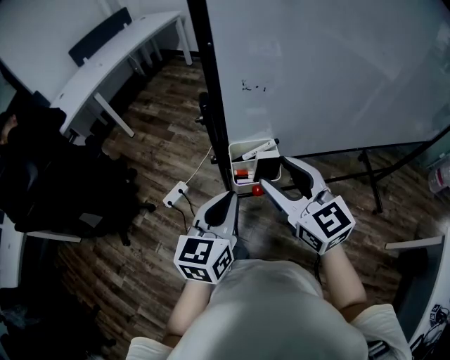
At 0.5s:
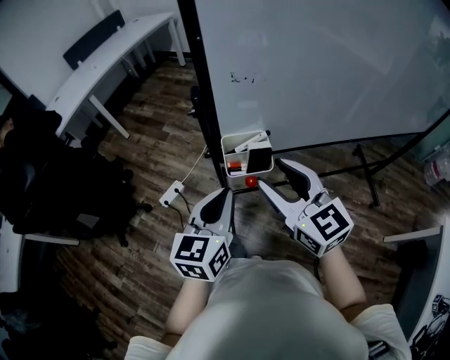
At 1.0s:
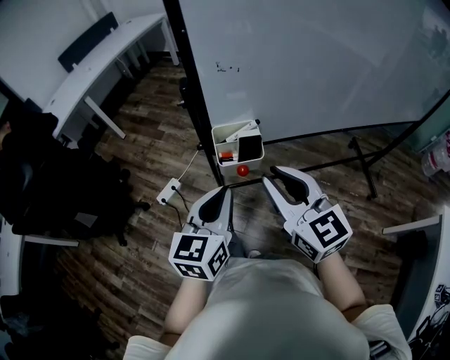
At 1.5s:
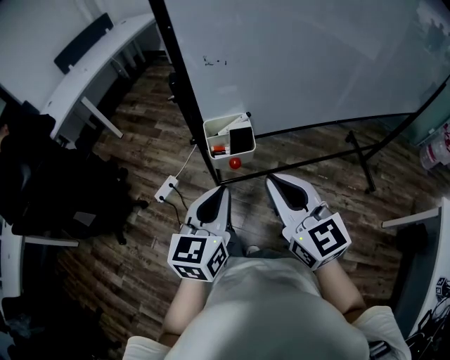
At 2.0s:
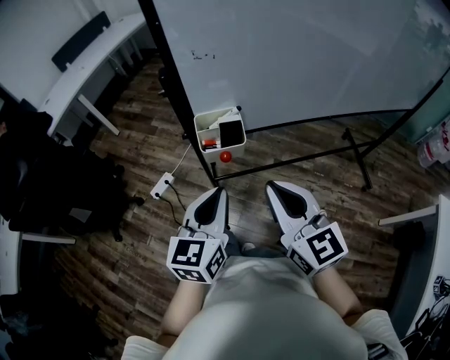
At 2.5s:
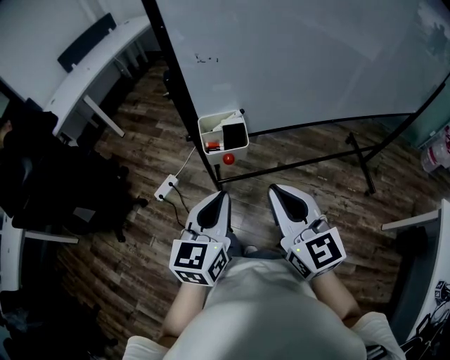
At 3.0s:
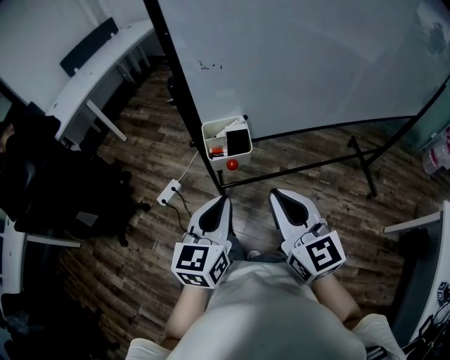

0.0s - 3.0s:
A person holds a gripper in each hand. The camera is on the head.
0.0s - 1.5s: The right gripper shifts about 10 cm backward, and closes its fingers, while the left gripper is displaced backward by approximately 5 cm.
1.5s - 3.0s: The grippers stay close to where they were, moving slightly.

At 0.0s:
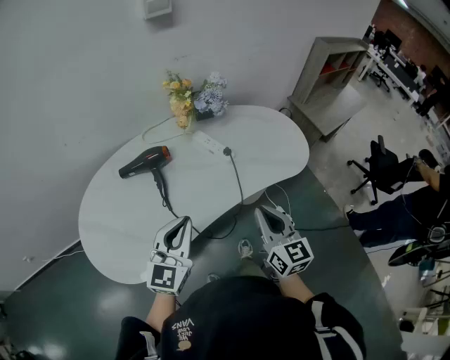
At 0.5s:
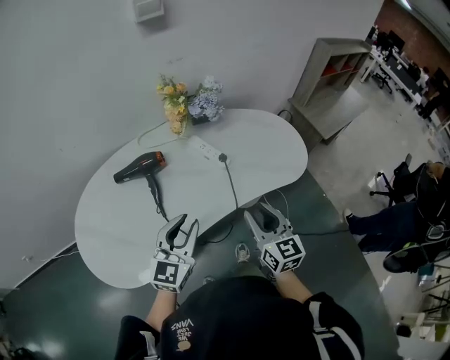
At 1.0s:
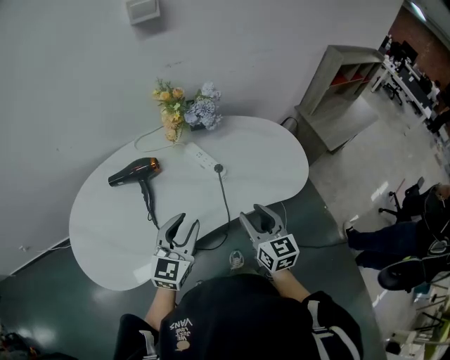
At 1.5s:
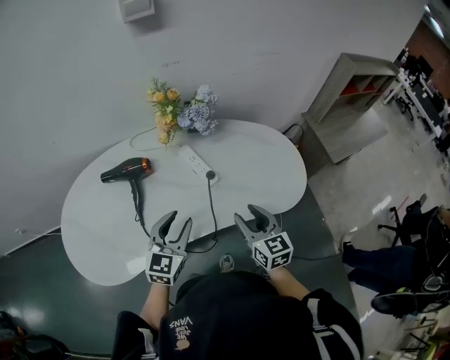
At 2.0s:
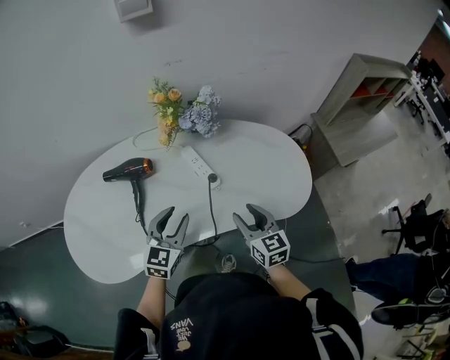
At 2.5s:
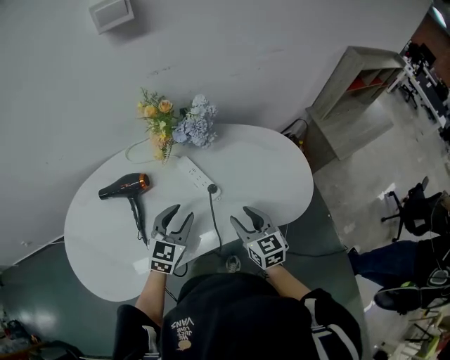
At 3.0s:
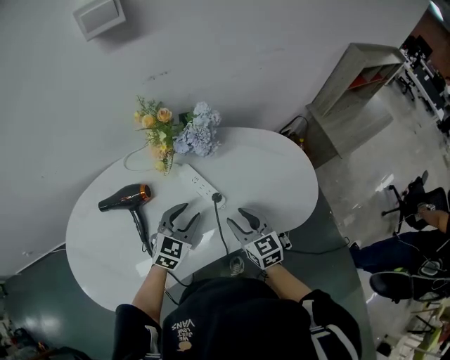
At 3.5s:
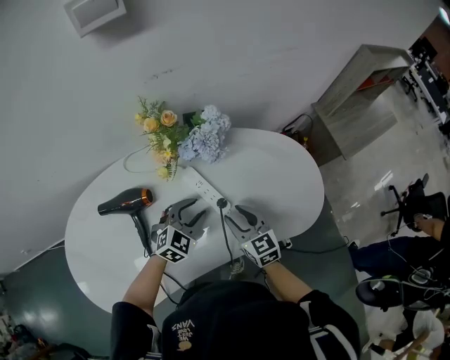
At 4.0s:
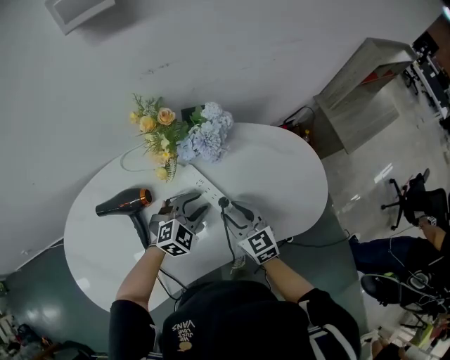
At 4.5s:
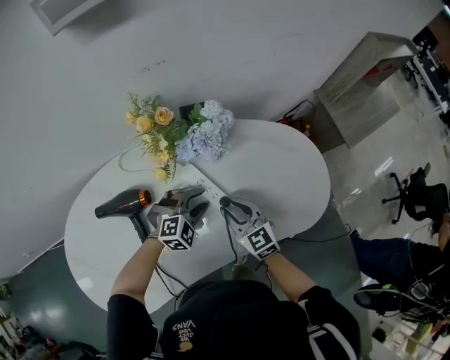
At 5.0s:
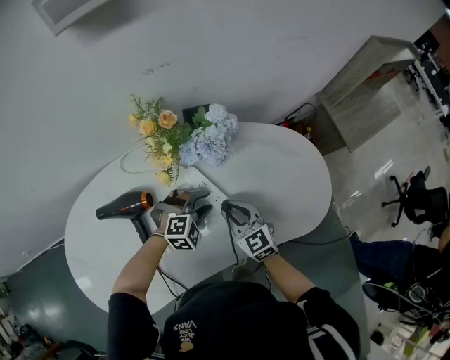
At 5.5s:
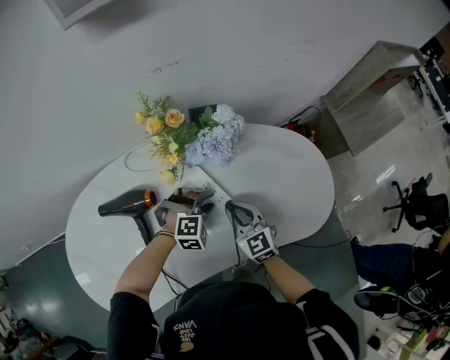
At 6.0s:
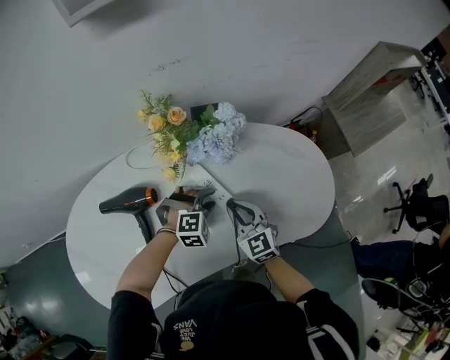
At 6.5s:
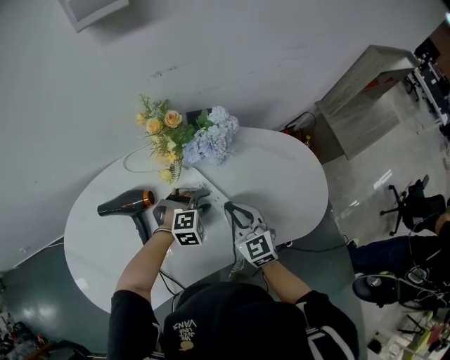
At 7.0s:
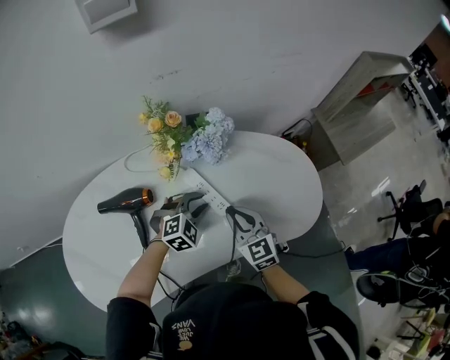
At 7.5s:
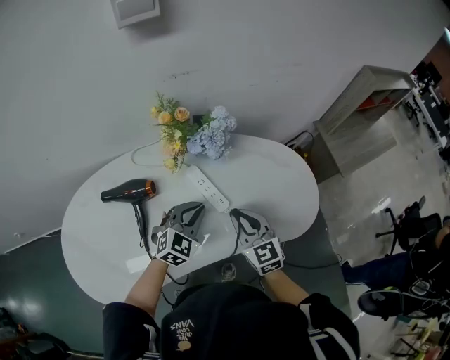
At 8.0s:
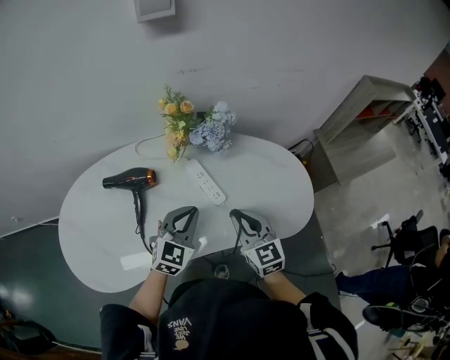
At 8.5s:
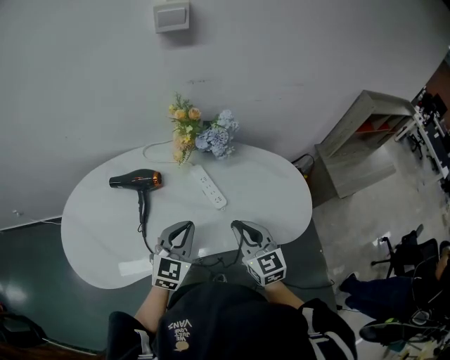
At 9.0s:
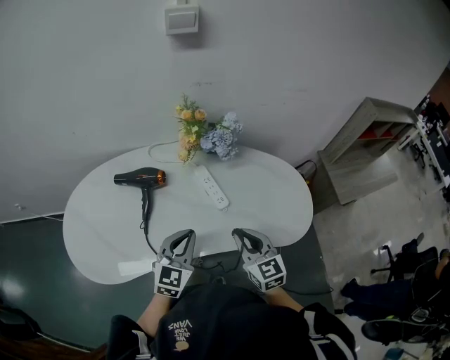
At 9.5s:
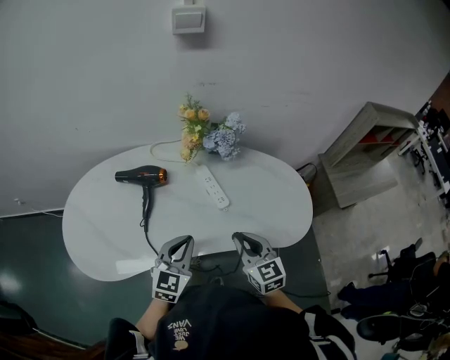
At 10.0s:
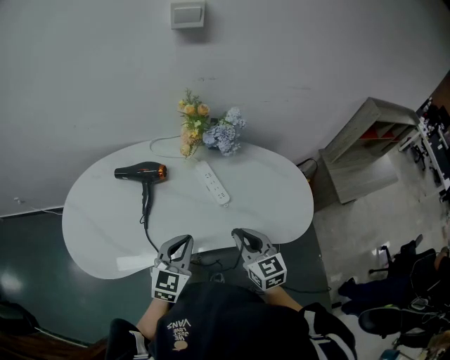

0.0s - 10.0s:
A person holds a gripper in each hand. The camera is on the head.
0.0s - 2.0s: The grippers both shift forward, downward and to the right by roughly 20 cm. The left gripper turns by some 20 degrees, and opens its fingers. Meanwhile the right gripper turns by some 20 degrees, and opens.
2.0s - 4.0s: The left gripper shifts roughly 20 cm forward and downward, and rotates about 50 degrees, while the right gripper moves forward, to the left and downward, some 15 cm.
4.0s - 6.0s: The left gripper swivels some 30 degrees, while the right gripper closes its fingers.
6.0s - 8.0s: The left gripper travels upward and backward by approximately 20 cm, tips its fingers upward by about 40 degrees, and closes its fingers, while the right gripper shifts some 15 cm upward, backward and to the right.
8.0s - 10.0s: The right gripper heads backward, covering roughly 10 cm. Meanwhile the left gripper moves backward, about 10 cm.

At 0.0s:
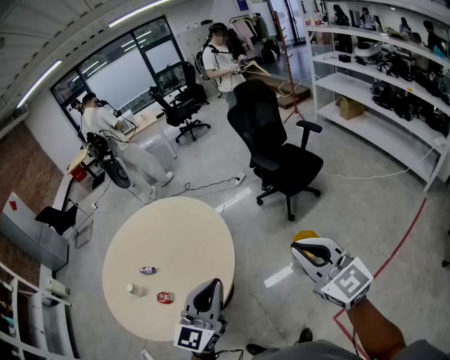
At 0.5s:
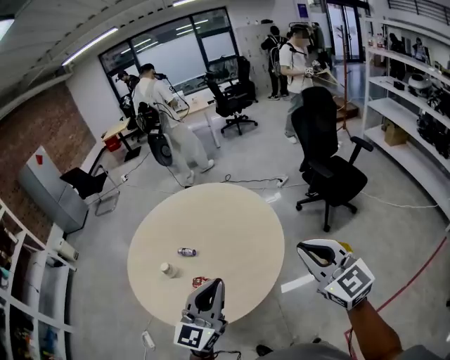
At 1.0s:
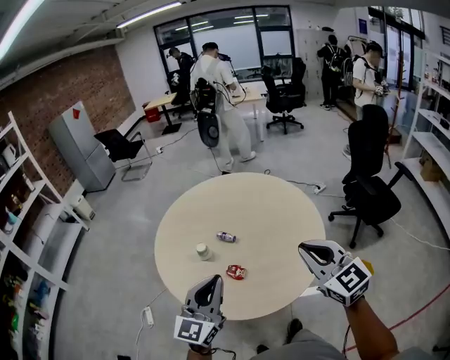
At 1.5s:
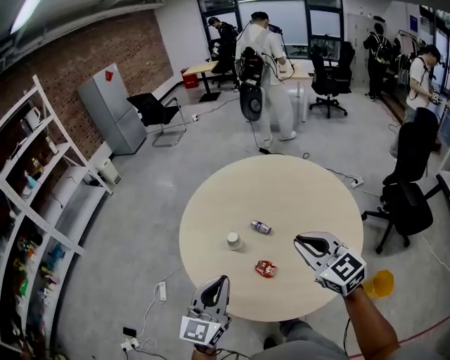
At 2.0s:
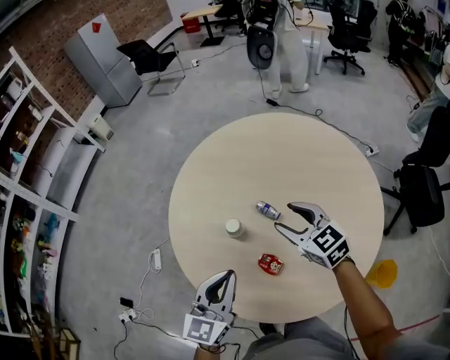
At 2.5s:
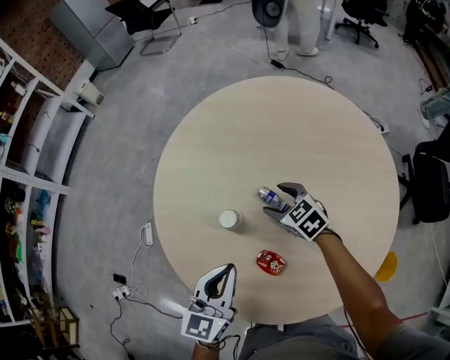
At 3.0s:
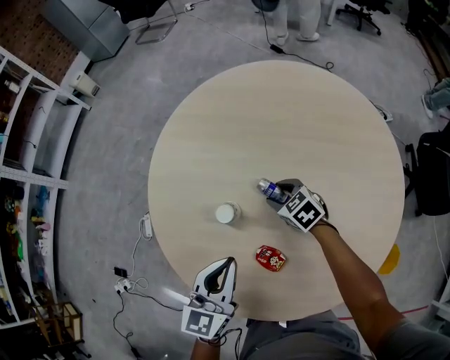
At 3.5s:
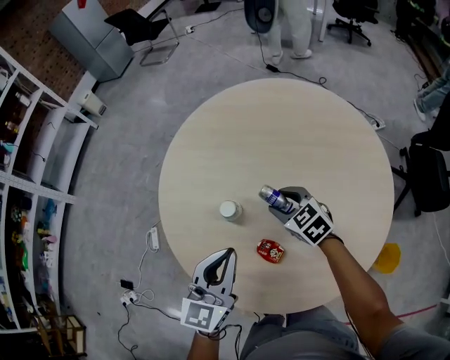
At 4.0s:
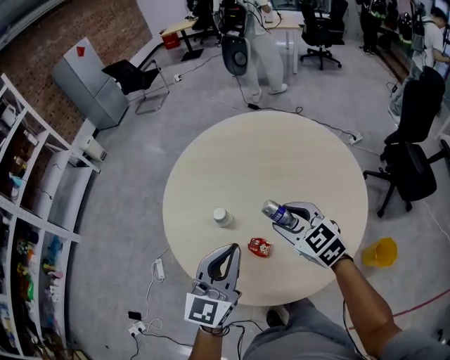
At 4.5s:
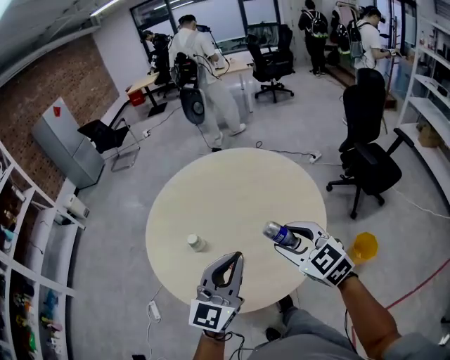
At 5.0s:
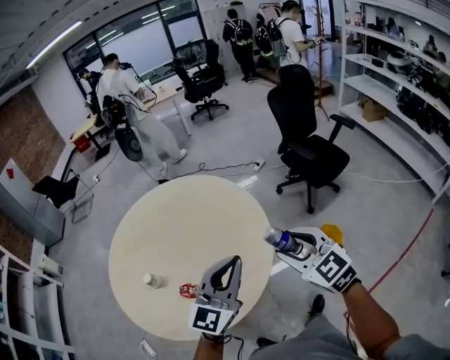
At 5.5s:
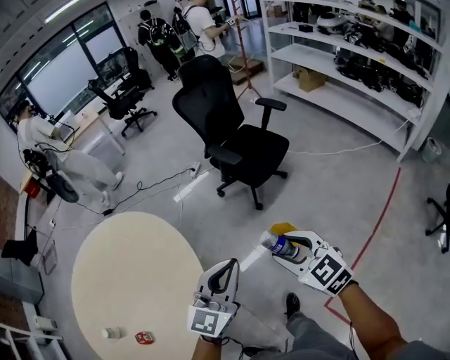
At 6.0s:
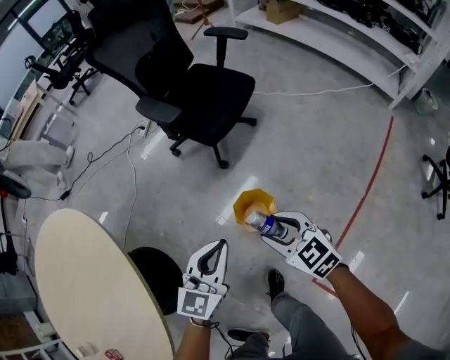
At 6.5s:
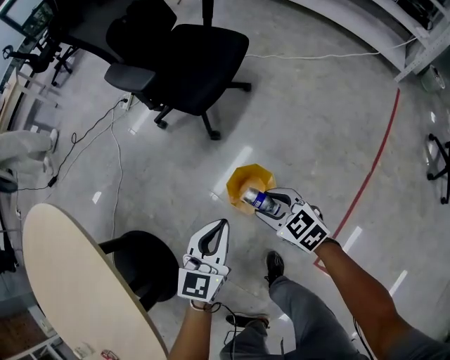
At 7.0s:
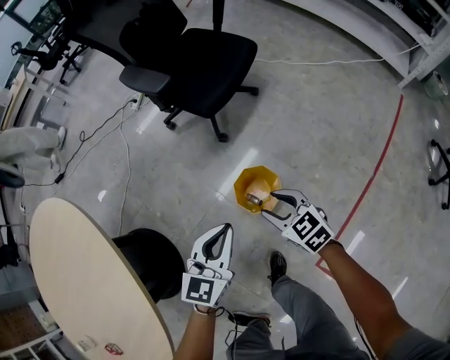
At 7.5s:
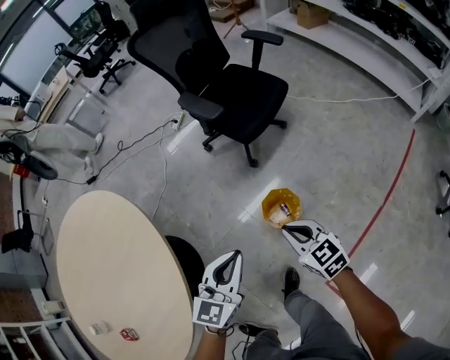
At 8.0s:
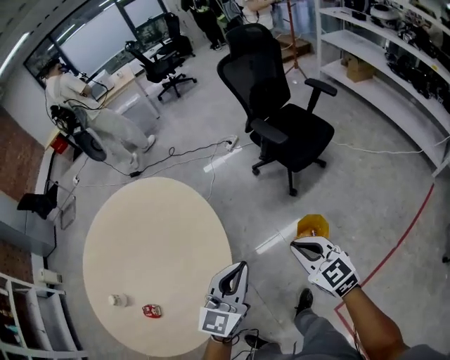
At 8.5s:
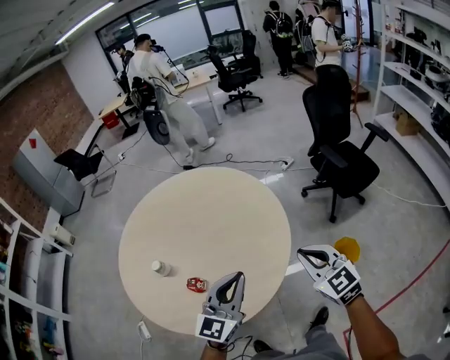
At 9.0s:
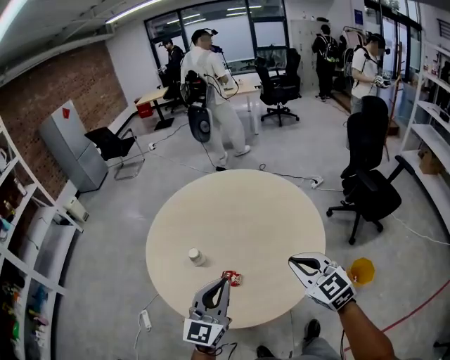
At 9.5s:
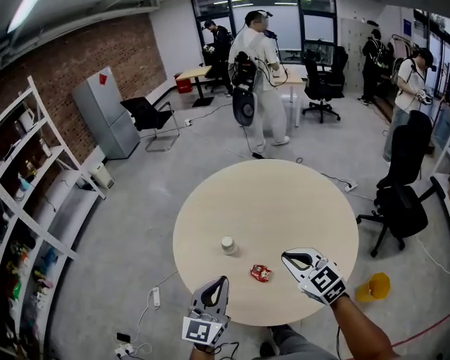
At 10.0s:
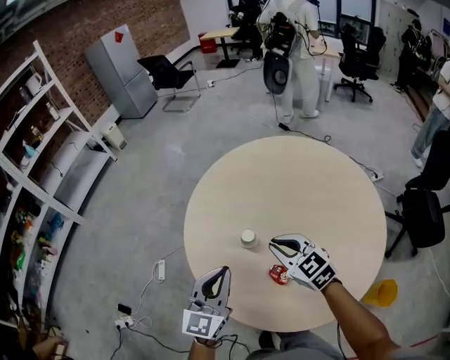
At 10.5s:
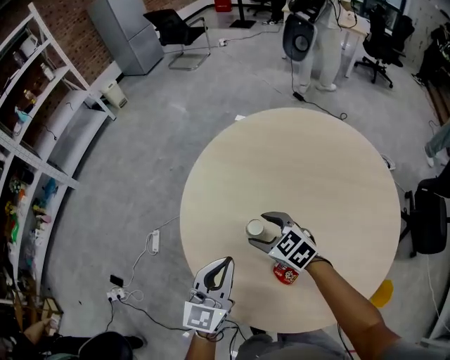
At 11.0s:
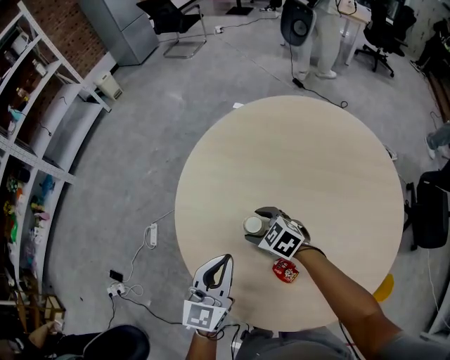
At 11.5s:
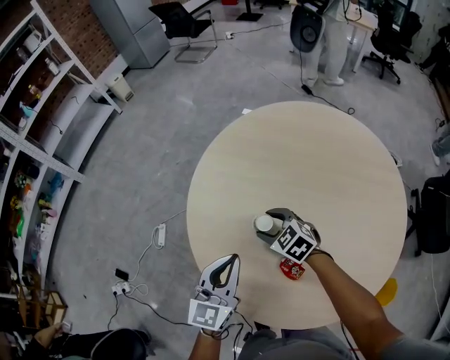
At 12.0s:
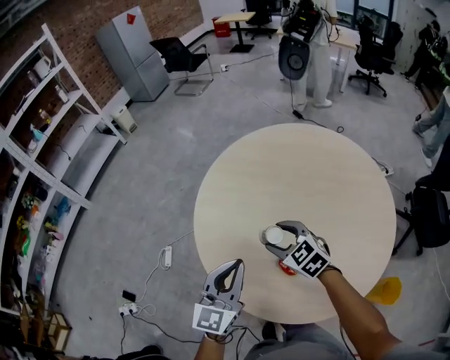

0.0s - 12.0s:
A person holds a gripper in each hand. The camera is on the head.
0.0s - 2.0s: Both grippers are carried some 70 cm. The left gripper swivels about 40 degrees. Meanwhile the right gripper turns by roughly 50 degrees, and opens up.
2.0s - 4.0s: The left gripper moves upward and to the right, roughly 10 cm. Meanwhile the right gripper moves backward, roughly 10 cm, and travels downward and back again, some 25 cm each way.
4.0s - 6.0s: The two grippers travel together, about 90 cm. The right gripper changes its angle by roughly 50 degrees. Meanwhile the left gripper rotates roughly 60 degrees.
6.0s - 8.0s: Both grippers move upward, to the left and backward, roughly 35 cm. The right gripper closes up. The left gripper turns by approximately 20 degrees.
8.0s - 10.0s: Both grippers are carried some 80 cm. The left gripper turns by some 50 degrees, while the right gripper turns by approximately 50 degrees.
10.0s - 12.0s: The right gripper is displaced to the left by some 5 cm, travels downward and back again, roughly 20 cm each way, and opens its fingers, while the left gripper reaches approximately 10 cm downward, then returns.

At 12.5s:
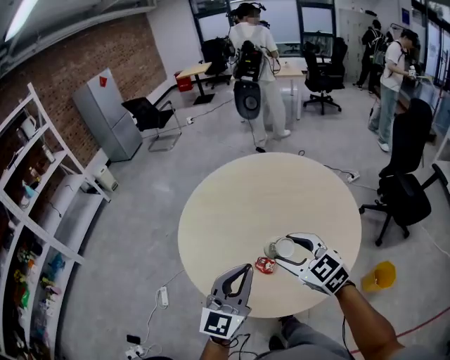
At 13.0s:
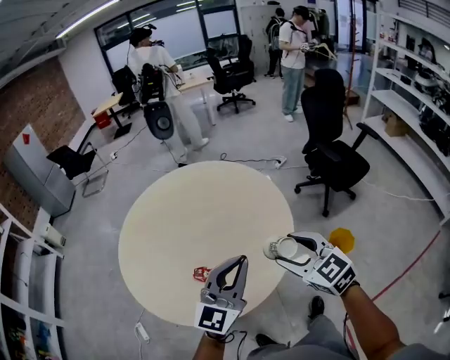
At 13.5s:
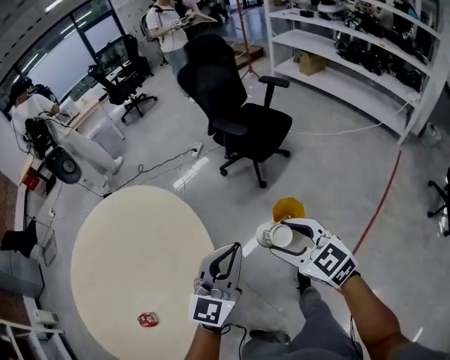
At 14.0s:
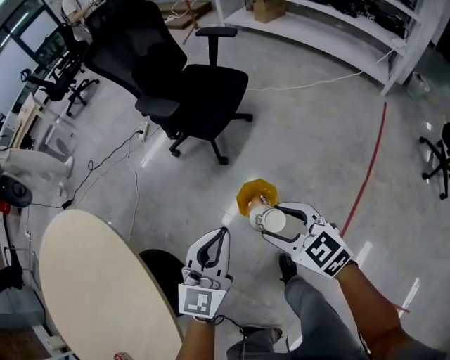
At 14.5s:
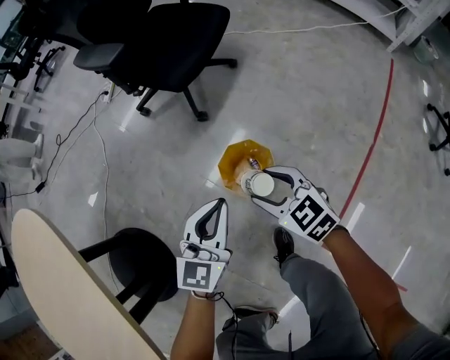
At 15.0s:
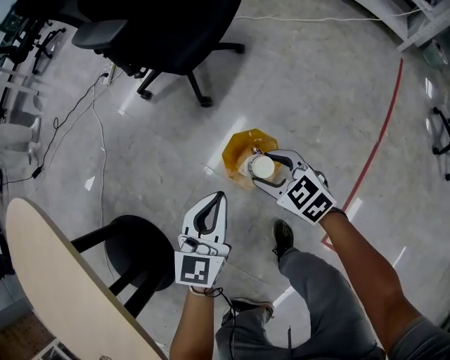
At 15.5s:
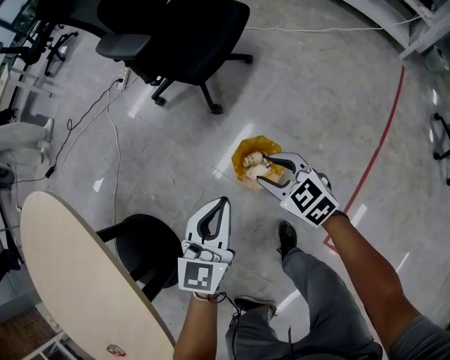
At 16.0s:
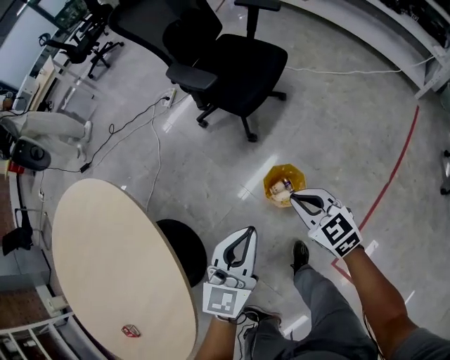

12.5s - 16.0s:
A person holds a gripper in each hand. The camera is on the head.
12.5s - 14.5s: The pair of grippers is taken roughly 90 cm. The right gripper swivels approximately 60 degrees. Meanwhile the left gripper rotates about 60 degrees.
14.5s - 16.0s: The grippers both shift upward by about 25 cm. The right gripper closes its fingers.
